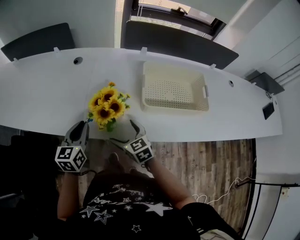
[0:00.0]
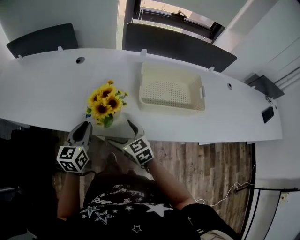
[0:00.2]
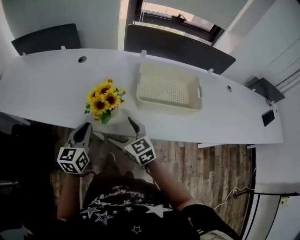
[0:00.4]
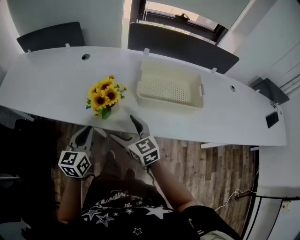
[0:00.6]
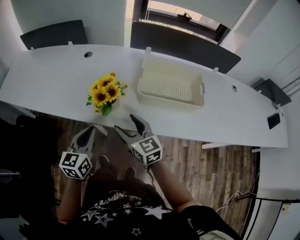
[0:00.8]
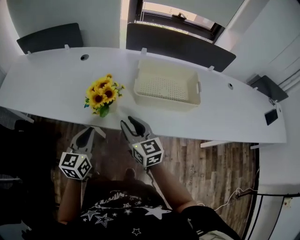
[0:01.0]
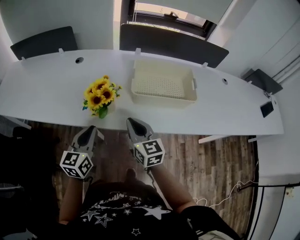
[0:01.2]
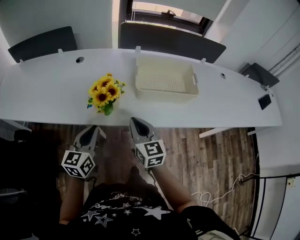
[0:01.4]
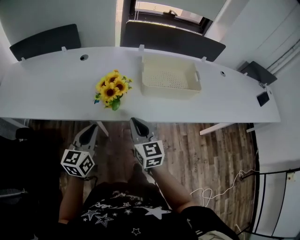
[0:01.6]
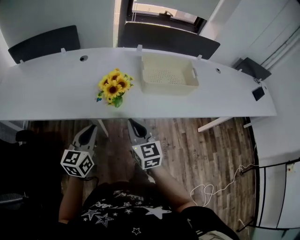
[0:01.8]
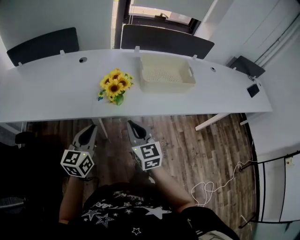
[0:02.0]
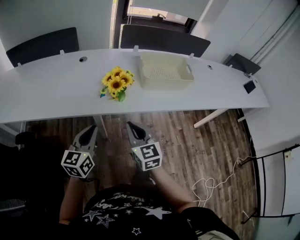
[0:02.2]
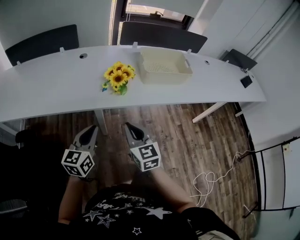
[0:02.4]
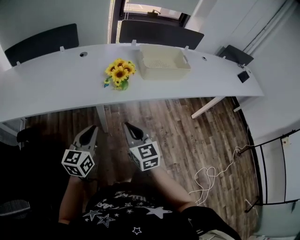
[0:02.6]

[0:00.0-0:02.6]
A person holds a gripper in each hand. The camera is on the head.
0:00.0 to 0:01.2: The right gripper is displaced upward, to the right and backward by approximately 15 cm, turns by approximately 20 degrees, and closes up. Meanwhile the left gripper goes roughly 15 cm backward and to the right.
0:01.2 to 0:02.6: The left gripper heads to the left and backward, covering roughly 20 cm. The right gripper goes some 25 cm backward and to the left.

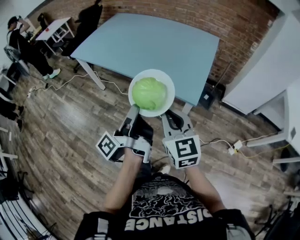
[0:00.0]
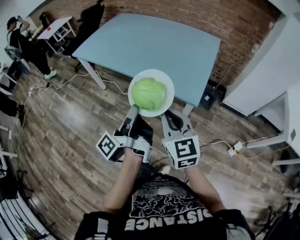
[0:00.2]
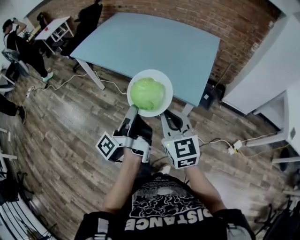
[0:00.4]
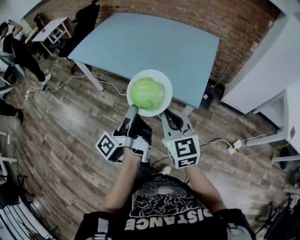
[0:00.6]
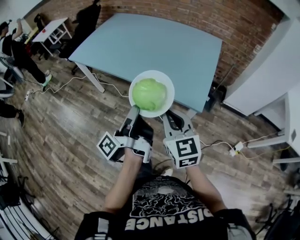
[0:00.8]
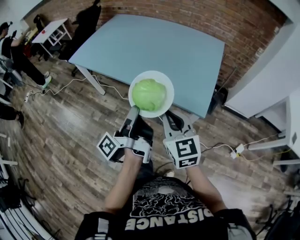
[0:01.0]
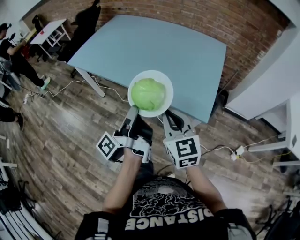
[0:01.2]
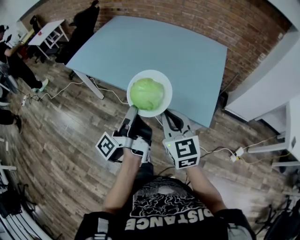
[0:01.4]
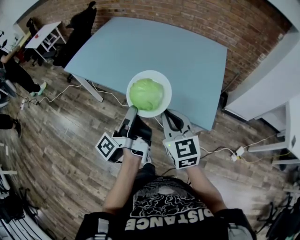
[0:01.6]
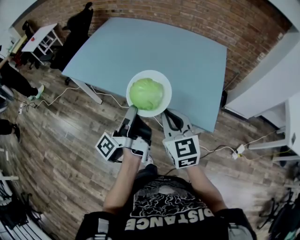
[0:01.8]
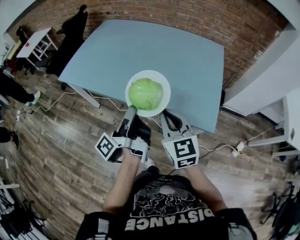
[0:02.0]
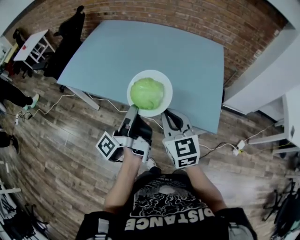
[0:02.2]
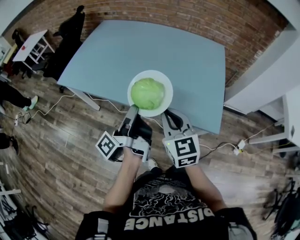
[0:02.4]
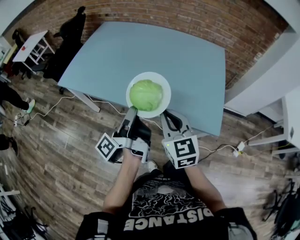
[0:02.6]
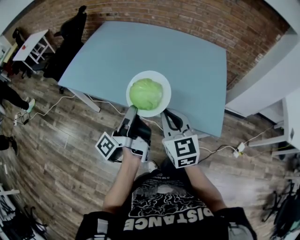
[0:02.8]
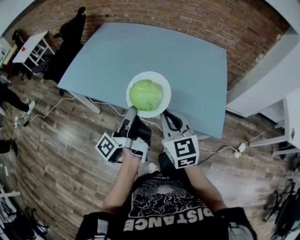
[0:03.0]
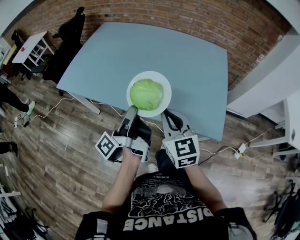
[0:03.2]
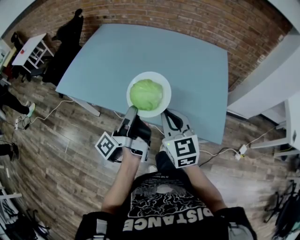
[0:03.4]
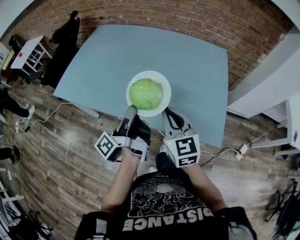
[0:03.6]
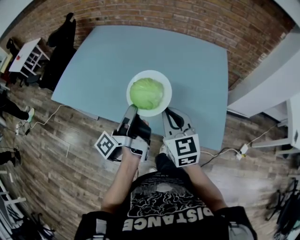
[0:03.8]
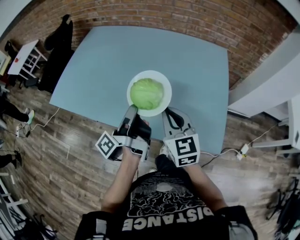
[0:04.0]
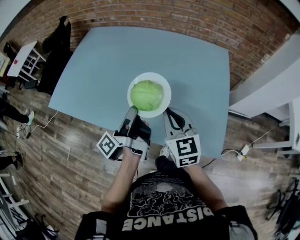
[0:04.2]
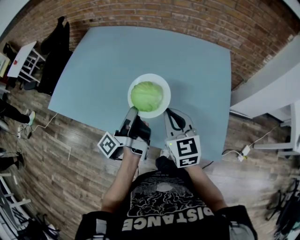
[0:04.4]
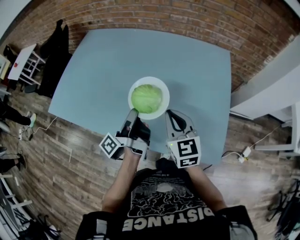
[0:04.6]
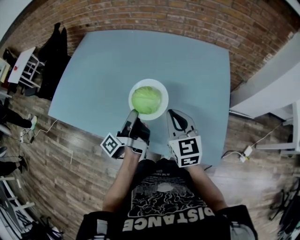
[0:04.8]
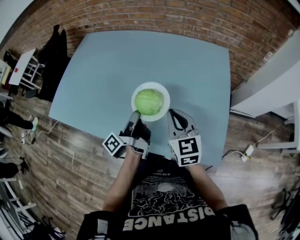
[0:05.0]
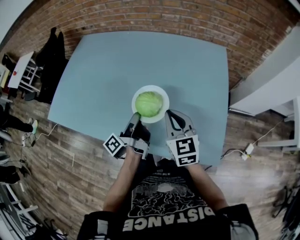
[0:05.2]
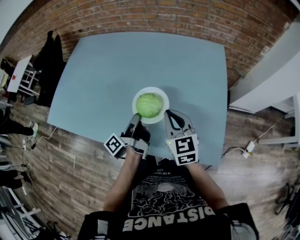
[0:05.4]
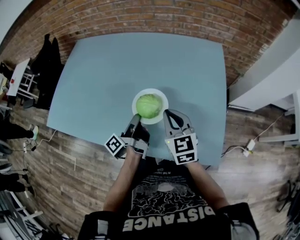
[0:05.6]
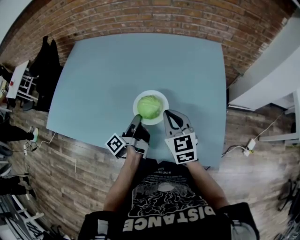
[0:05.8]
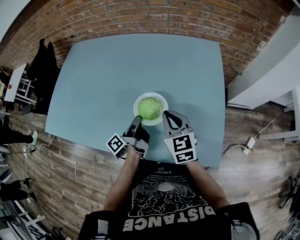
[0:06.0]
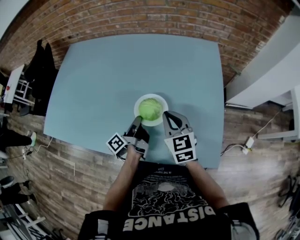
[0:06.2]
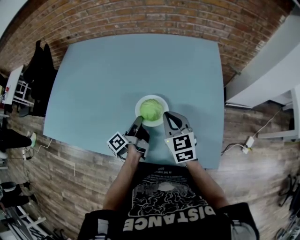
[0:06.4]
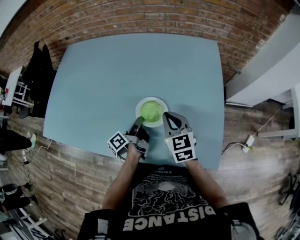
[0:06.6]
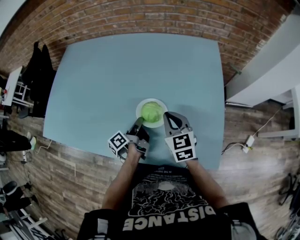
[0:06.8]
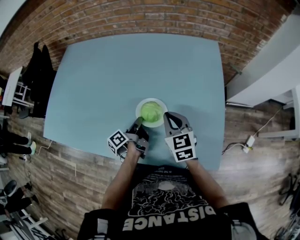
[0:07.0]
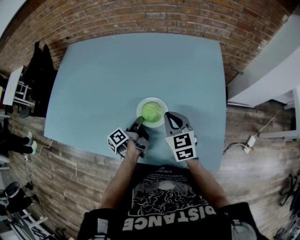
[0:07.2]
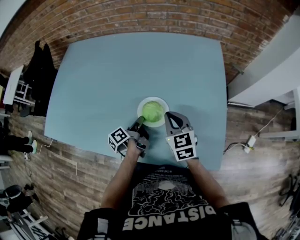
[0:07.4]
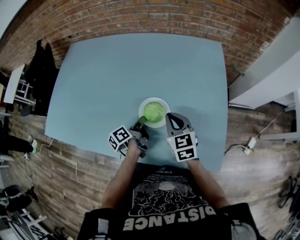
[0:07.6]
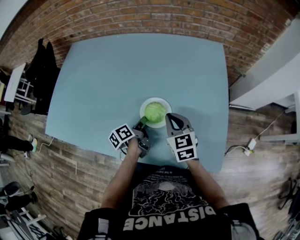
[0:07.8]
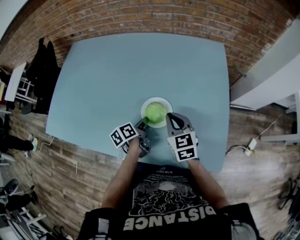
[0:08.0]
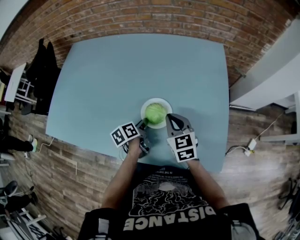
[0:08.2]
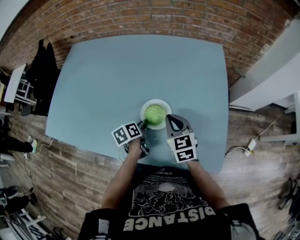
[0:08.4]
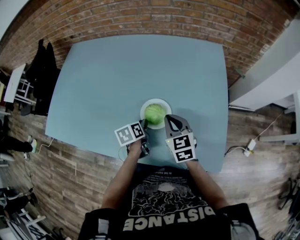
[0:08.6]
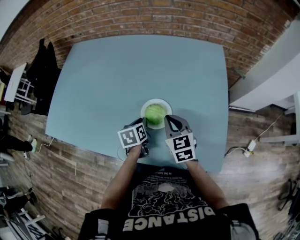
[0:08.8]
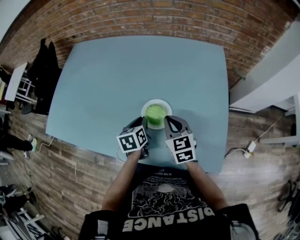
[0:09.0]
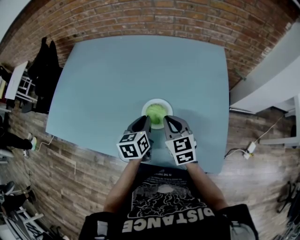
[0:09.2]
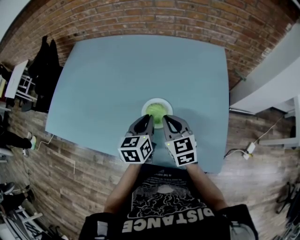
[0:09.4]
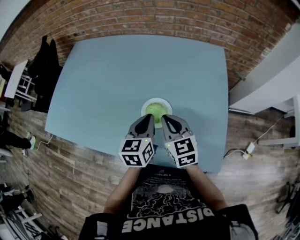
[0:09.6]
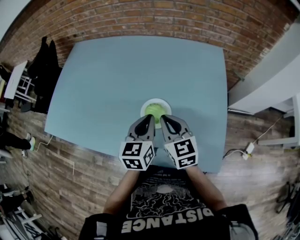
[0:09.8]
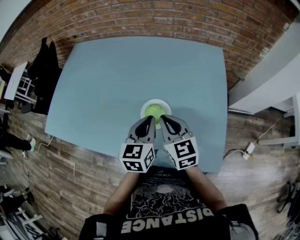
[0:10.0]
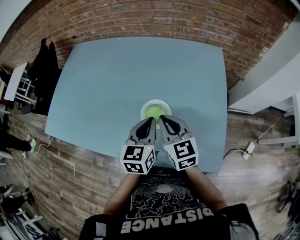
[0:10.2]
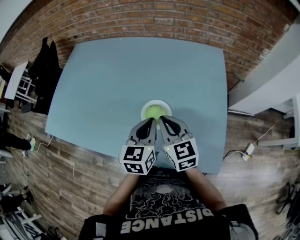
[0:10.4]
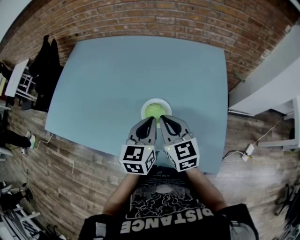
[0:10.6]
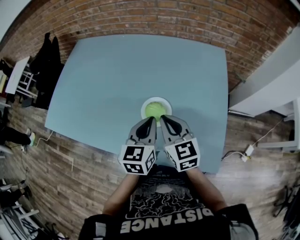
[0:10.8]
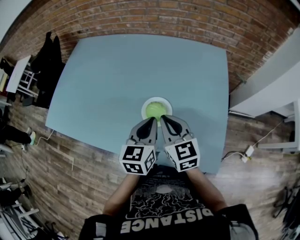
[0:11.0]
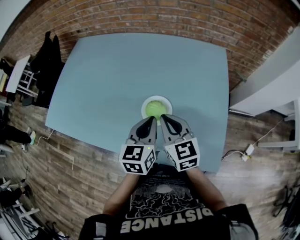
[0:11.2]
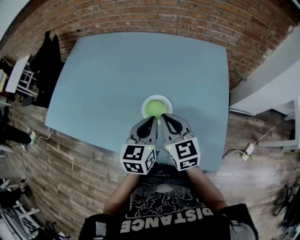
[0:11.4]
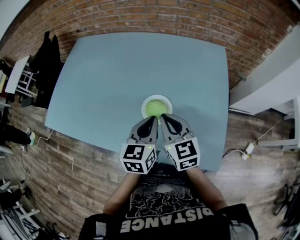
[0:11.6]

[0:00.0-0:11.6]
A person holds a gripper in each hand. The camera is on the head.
0:00.0 to 0:01.4: The right gripper changes place by about 15 cm.
0:01.4 to 0:02.8: The right gripper shifts by approximately 15 cm.
0:02.8 to 0:04.4: The right gripper moves roughly 20 cm.
0:04.4 to 0:05.8: The right gripper ends up roughly 10 cm from where it was.
0:05.8 to 0:07.2: The right gripper changes place by approximately 5 cm.
0:08.8 to 0:10.2: The right gripper heads upward, covering roughly 5 cm.

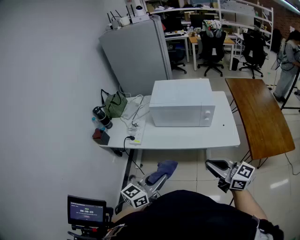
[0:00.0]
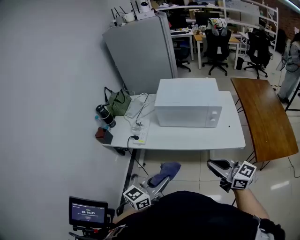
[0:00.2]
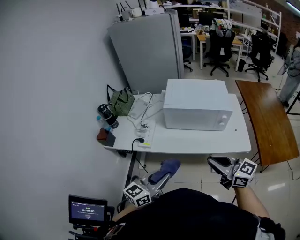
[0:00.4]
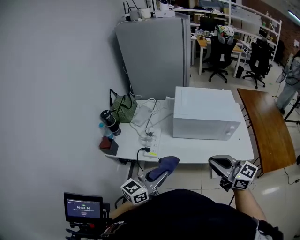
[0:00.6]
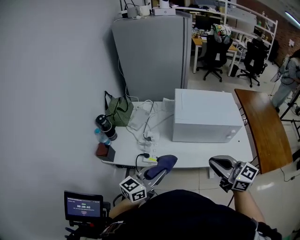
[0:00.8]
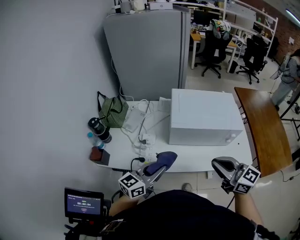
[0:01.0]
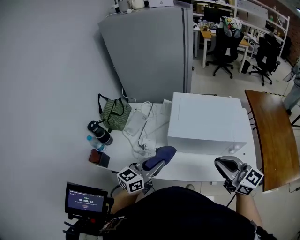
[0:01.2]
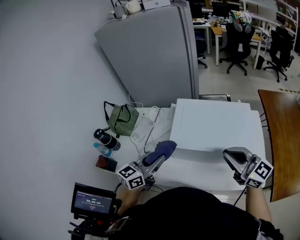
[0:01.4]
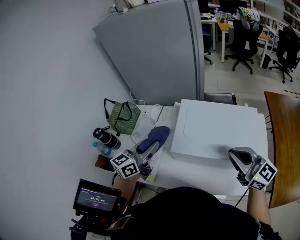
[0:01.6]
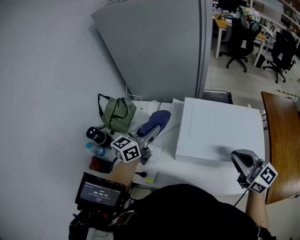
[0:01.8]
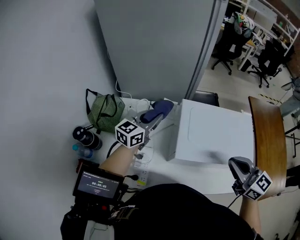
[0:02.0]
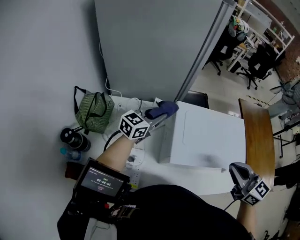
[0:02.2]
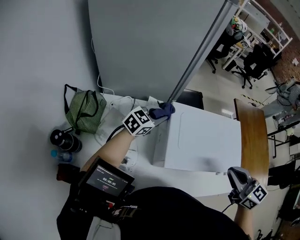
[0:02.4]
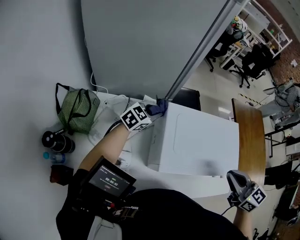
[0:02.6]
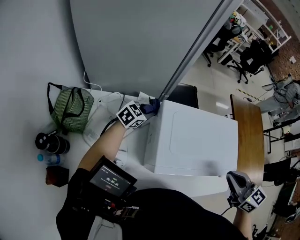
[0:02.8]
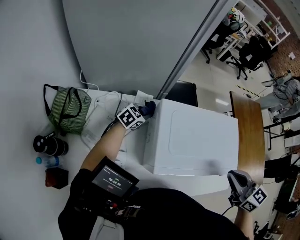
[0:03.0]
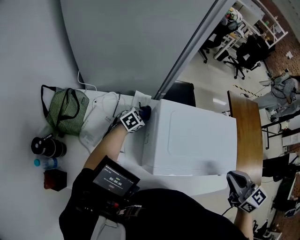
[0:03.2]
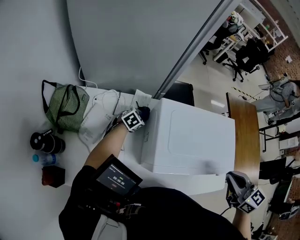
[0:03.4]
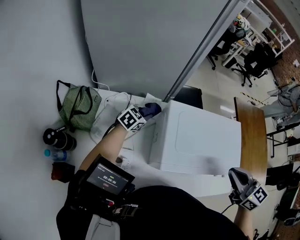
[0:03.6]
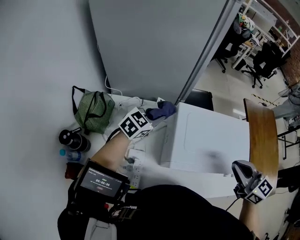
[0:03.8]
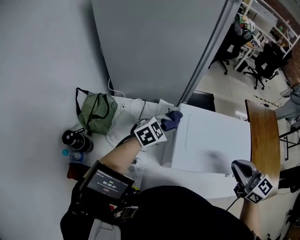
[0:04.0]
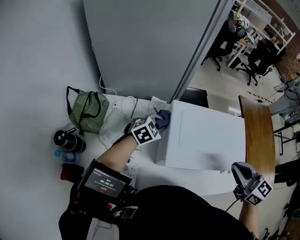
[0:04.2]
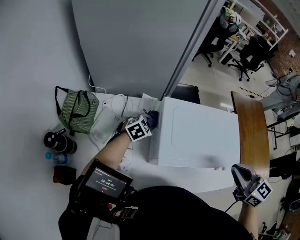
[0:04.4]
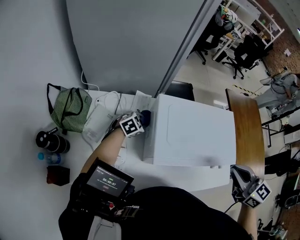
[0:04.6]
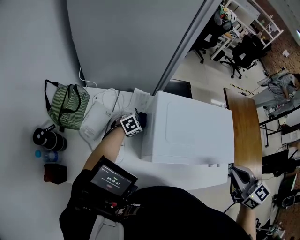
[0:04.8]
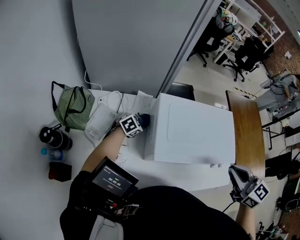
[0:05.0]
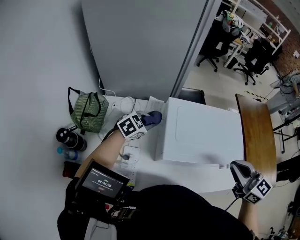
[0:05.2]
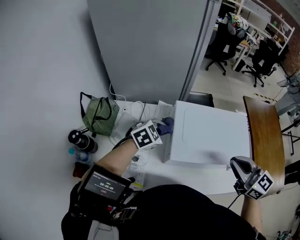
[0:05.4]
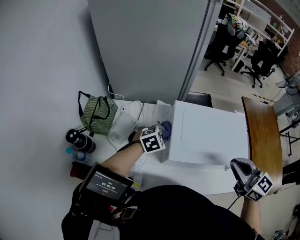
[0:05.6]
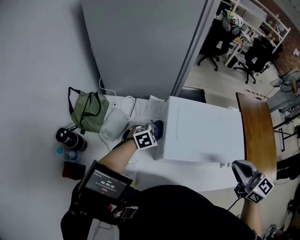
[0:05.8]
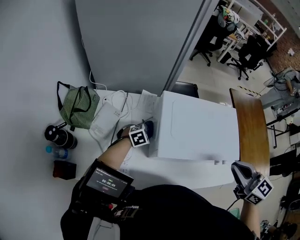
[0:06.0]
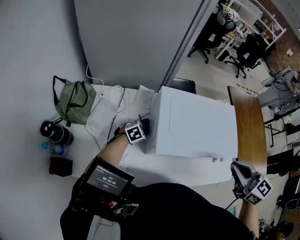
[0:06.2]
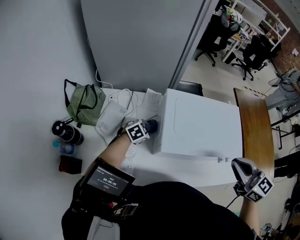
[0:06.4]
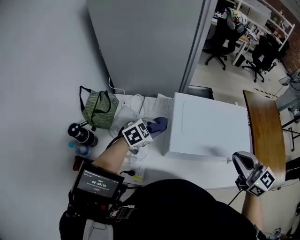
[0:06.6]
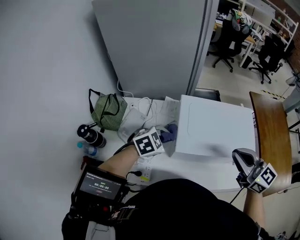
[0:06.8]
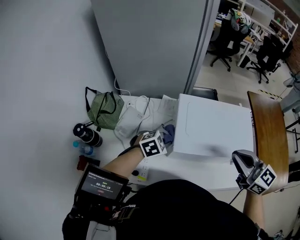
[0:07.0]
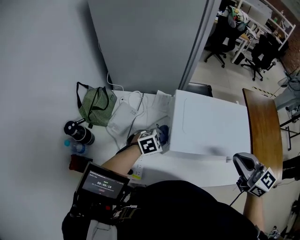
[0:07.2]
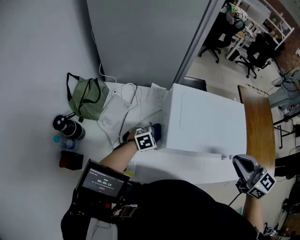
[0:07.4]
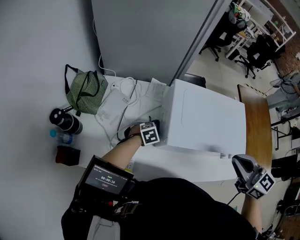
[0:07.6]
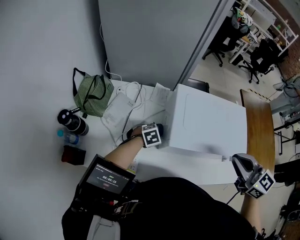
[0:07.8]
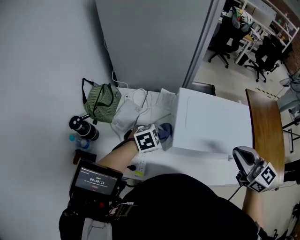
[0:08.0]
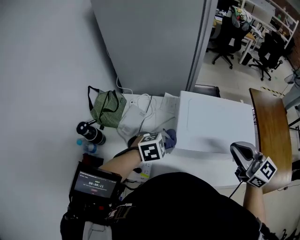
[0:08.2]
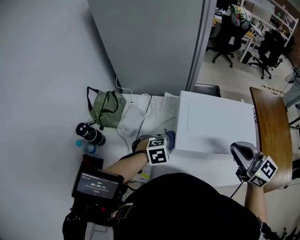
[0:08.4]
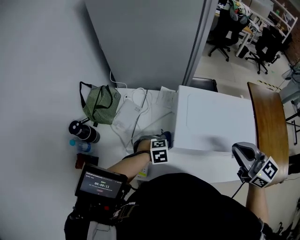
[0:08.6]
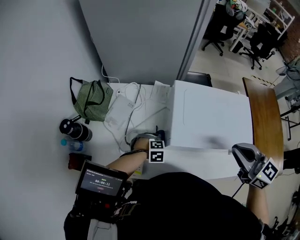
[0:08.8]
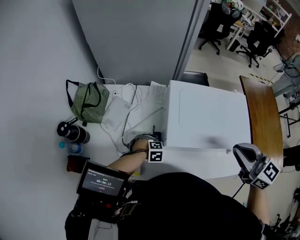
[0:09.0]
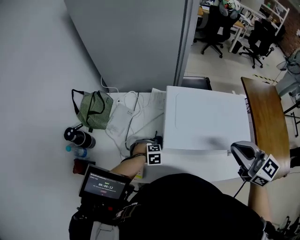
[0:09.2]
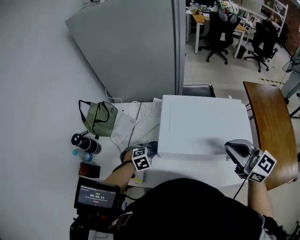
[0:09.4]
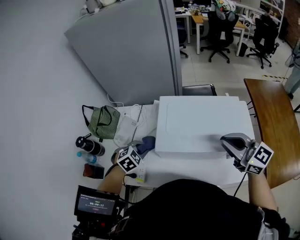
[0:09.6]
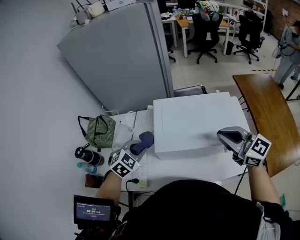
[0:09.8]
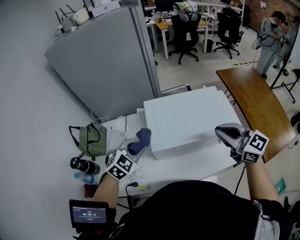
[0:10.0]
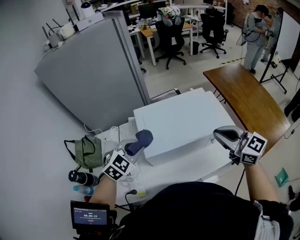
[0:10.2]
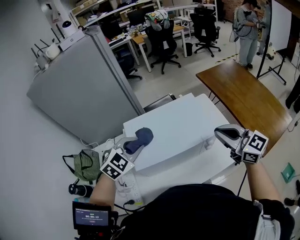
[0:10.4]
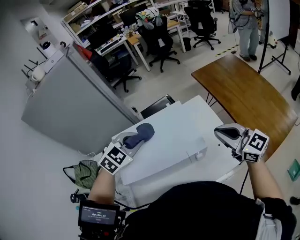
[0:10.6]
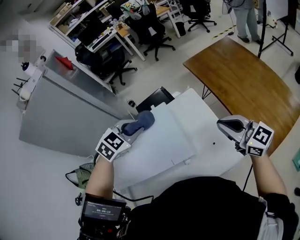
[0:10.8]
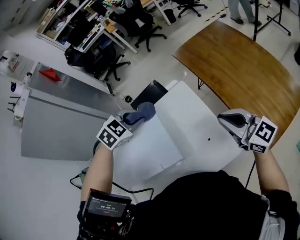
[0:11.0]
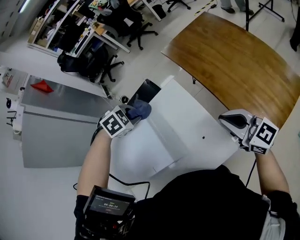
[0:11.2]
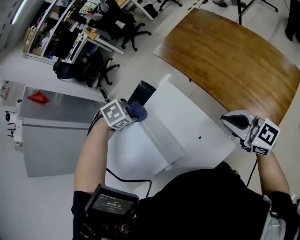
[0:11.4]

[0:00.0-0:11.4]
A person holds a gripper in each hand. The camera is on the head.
0:00.0 to 0:01.4: Both grippers travel together forward, approximately 35 cm.
0:01.4 to 0:02.8: The left gripper moves forward and downward, approximately 35 cm, and swivels roughly 40 degrees. Meanwhile the right gripper is displaced forward by about 5 cm, and changes its angle by roughly 30 degrees.
0:02.8 to 0:04.2: The left gripper swings up and down, roughly 25 cm each way, with 2 reversals.
0:04.2 to 0:05.6: The left gripper goes up and down, some 20 cm each way, reversing 2 times.
0:05.6 to 0:07.2: The left gripper goes up and down, approximately 20 cm each way, reversing 2 times.
0:07.2 to 0:08.6: The left gripper goes up and down, approximately 20 cm each way, reversing 2 times.
0:08.6 to 0:10.0: The right gripper changes place by some 5 cm. Meanwhile the left gripper is displaced upward by some 20 cm, and changes its angle by some 30 degrees.
0:10.0 to 0:11.4: The two grippers travel together, some 40 cm. The right gripper turns by approximately 30 degrees. The left gripper angles its fingers downward, by about 50 degrees.
